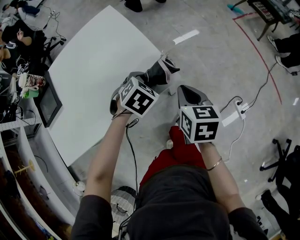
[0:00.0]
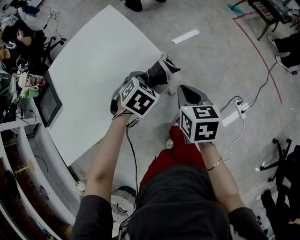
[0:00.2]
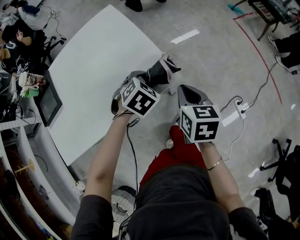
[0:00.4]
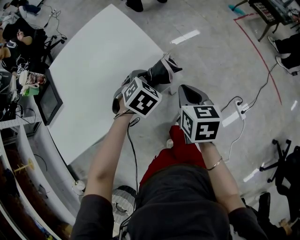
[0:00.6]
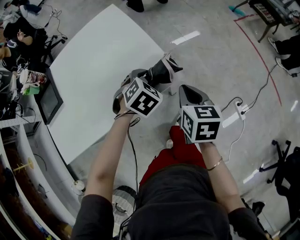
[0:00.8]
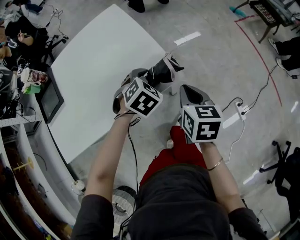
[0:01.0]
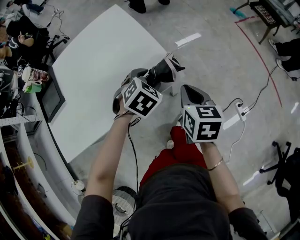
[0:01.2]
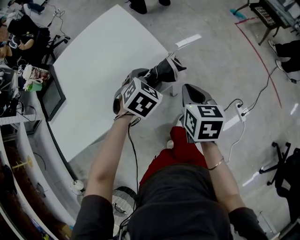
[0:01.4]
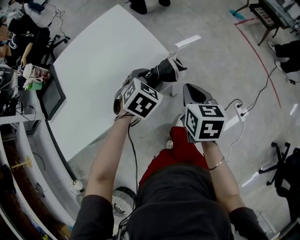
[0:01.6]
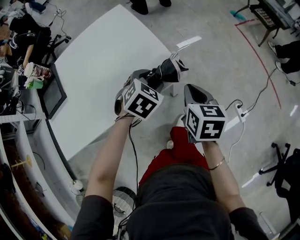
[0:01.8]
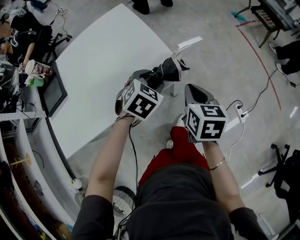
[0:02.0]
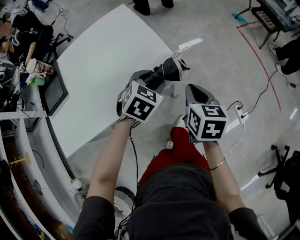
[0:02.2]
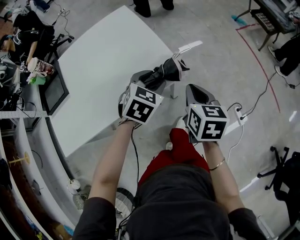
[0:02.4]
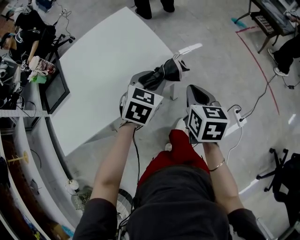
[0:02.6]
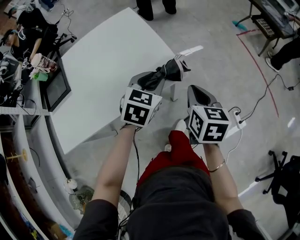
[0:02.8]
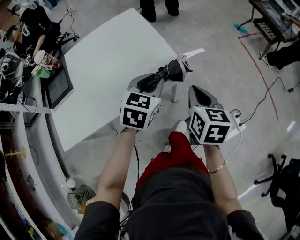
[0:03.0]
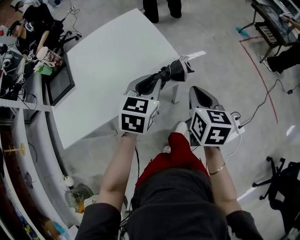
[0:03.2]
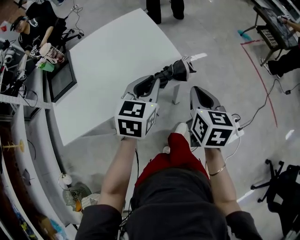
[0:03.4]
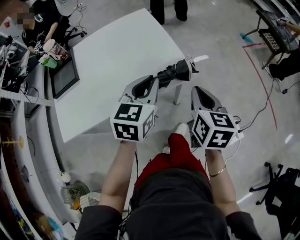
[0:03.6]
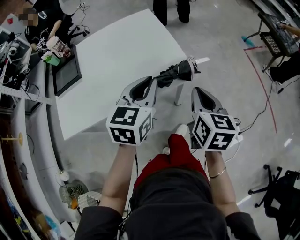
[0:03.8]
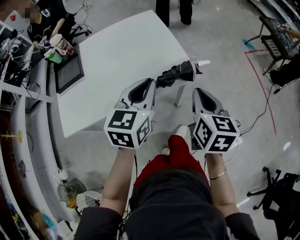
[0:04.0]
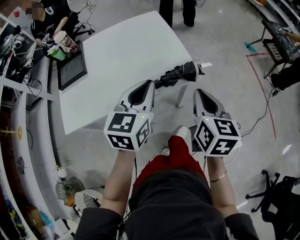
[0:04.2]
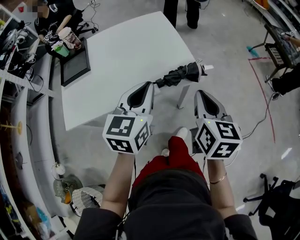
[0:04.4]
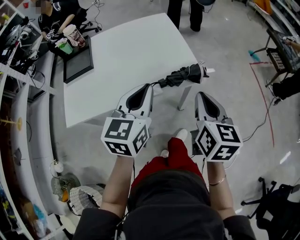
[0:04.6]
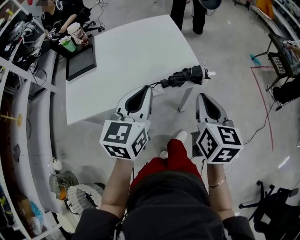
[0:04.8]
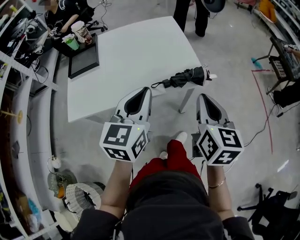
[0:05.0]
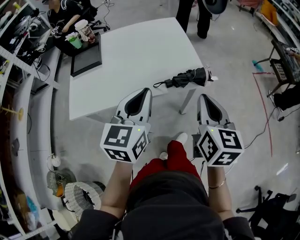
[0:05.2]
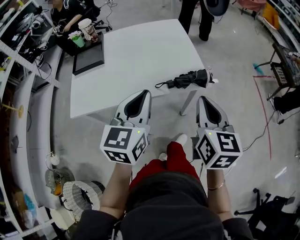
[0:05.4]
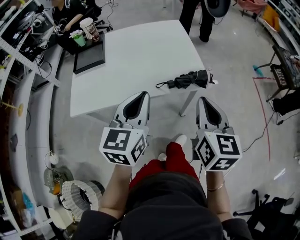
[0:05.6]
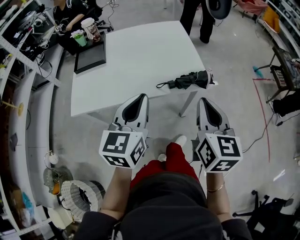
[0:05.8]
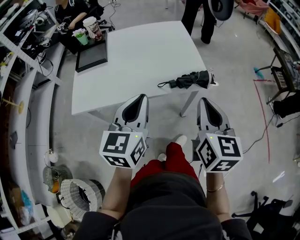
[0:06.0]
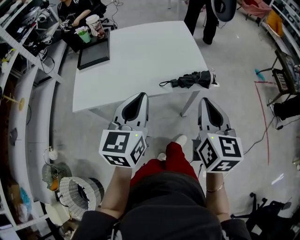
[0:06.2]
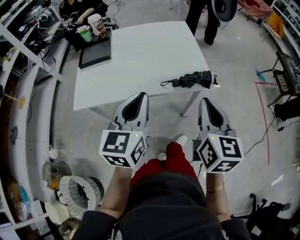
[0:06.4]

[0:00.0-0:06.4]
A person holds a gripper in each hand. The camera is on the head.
0:00.0 to 0:01.6: The grippers stay close to where they were, moving slightly.
0:01.6 to 0:03.2: The left gripper goes about 10 cm upward and backward, swivels some 40 degrees, and closes, while the right gripper goes roughly 5 cm upward.
0:03.2 to 0:04.8: The right gripper is displaced upward, backward and to the left by some 10 cm, while the left gripper is displaced backward, to the left and upward by approximately 20 cm, and turns by roughly 20 degrees.
0:04.8 to 0:06.4: The left gripper goes some 10 cm backward and to the left. The right gripper changes place by some 5 cm.

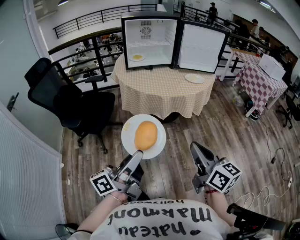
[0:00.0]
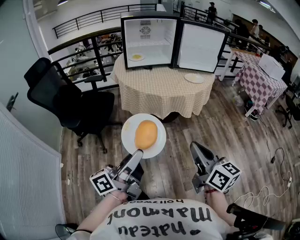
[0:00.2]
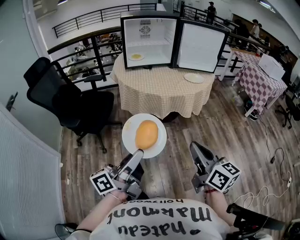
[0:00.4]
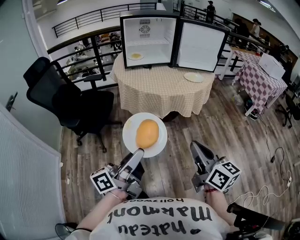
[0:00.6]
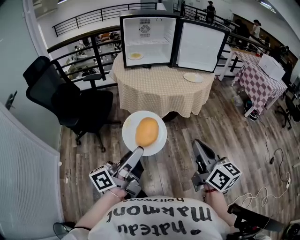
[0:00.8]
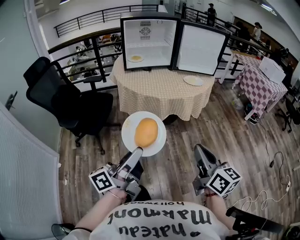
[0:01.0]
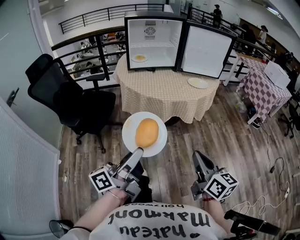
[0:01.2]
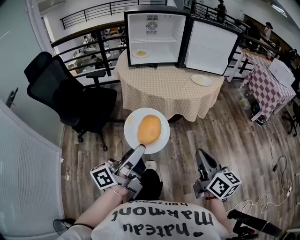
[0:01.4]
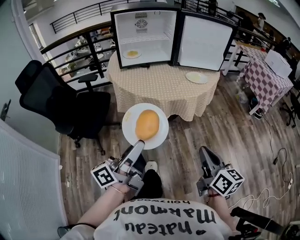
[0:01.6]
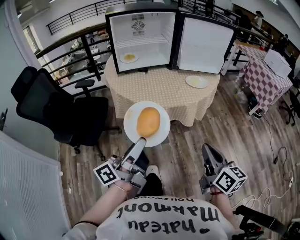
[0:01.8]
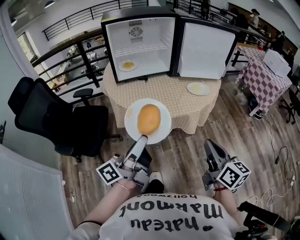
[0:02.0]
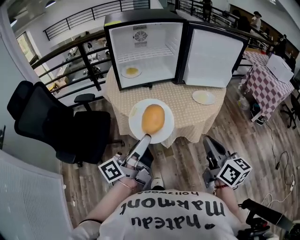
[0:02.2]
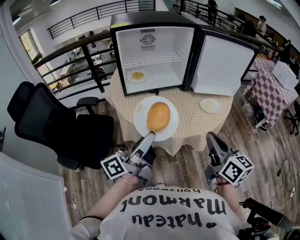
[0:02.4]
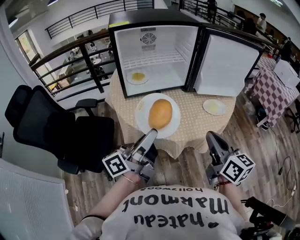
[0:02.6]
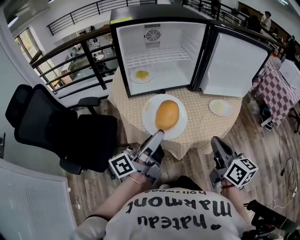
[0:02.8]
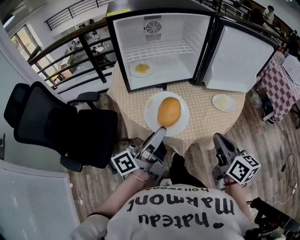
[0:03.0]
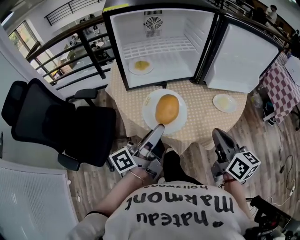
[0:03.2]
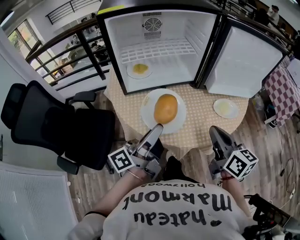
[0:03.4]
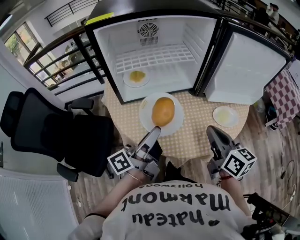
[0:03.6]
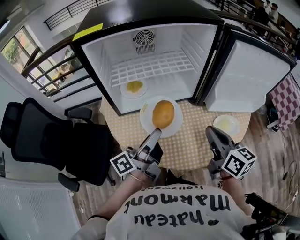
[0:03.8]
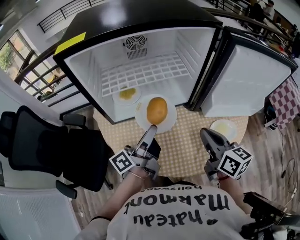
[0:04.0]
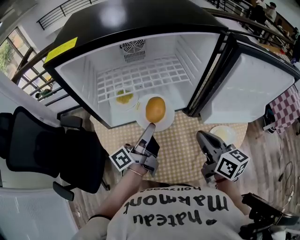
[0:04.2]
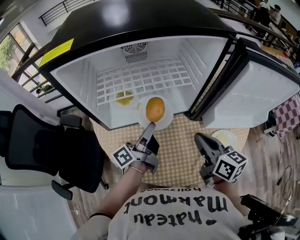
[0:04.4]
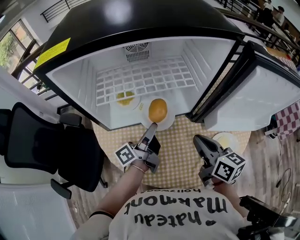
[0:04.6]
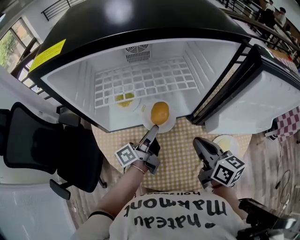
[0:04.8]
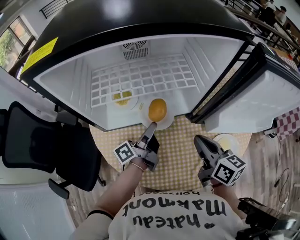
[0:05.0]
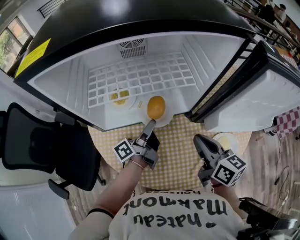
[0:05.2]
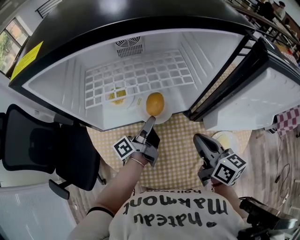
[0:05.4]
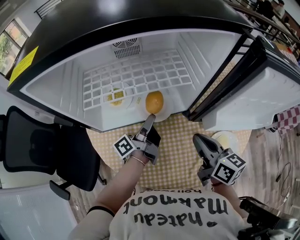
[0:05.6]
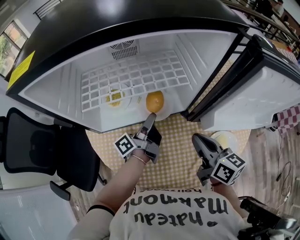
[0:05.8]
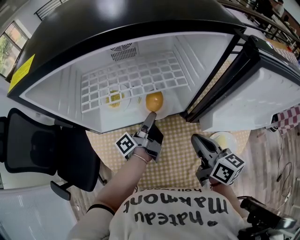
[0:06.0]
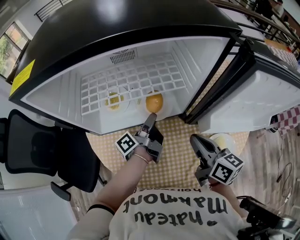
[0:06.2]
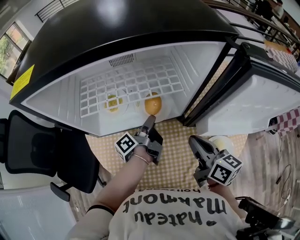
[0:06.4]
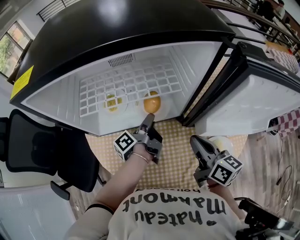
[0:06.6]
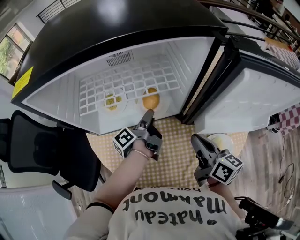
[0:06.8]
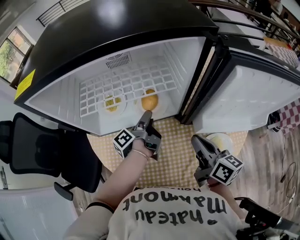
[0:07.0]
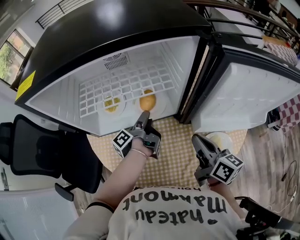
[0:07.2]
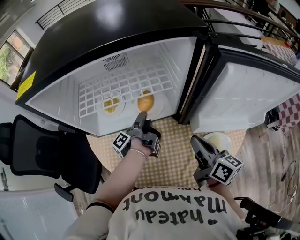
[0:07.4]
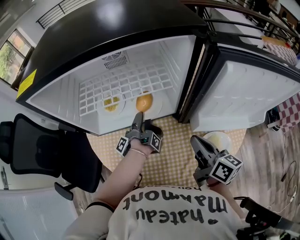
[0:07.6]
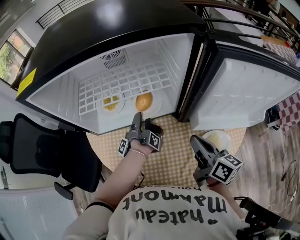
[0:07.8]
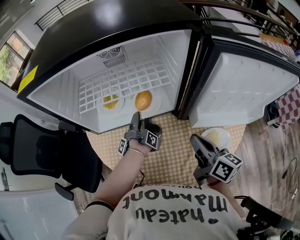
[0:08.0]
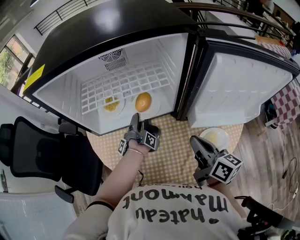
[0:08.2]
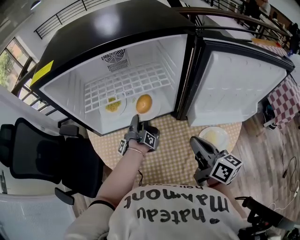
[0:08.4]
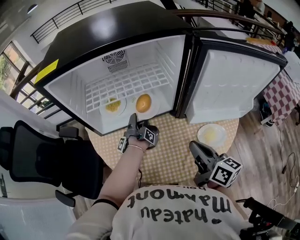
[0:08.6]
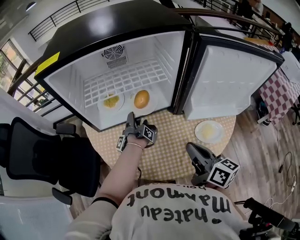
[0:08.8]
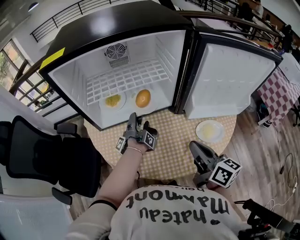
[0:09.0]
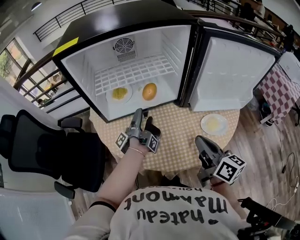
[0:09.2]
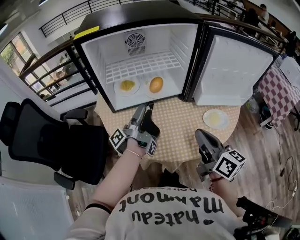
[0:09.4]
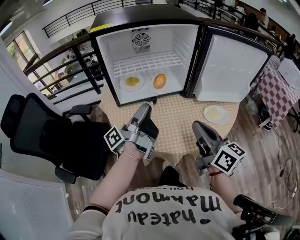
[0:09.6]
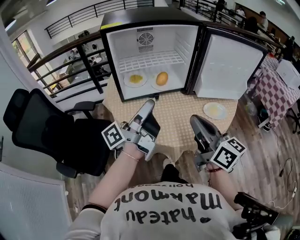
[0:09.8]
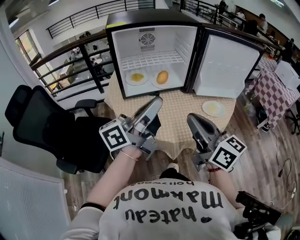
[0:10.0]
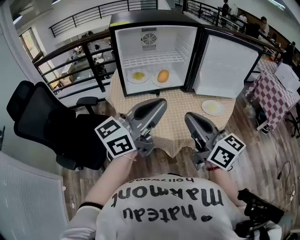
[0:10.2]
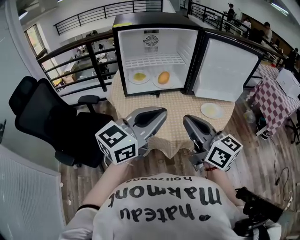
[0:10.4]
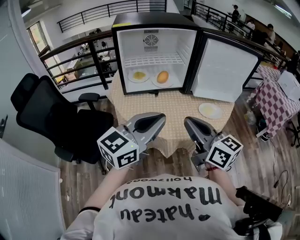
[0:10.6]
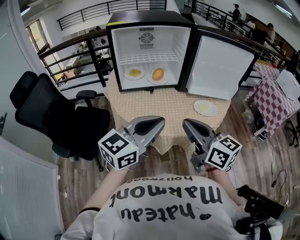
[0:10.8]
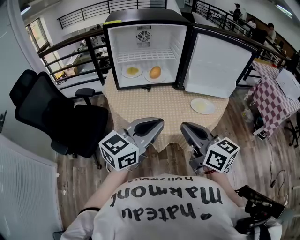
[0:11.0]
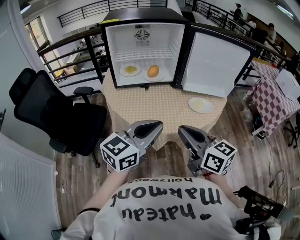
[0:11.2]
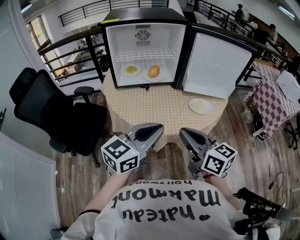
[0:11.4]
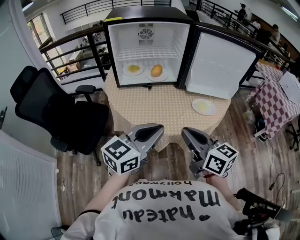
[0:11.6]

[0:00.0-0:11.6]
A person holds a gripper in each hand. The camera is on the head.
0:00.0 to 0:01.4: The right gripper changes place by some 10 cm.
0:01.4 to 0:02.8: The right gripper changes place by about 35 cm.
0:02.8 to 0:04.4: The right gripper changes place by approximately 30 cm.
0:07.2 to 0:08.8: The right gripper shifts by about 10 cm.
0:08.8 to 0:10.2: The right gripper changes place by approximately 25 cm, and turns by some 30 degrees.
0:10.2 to 0:11.6: The right gripper changes place by approximately 10 cm.

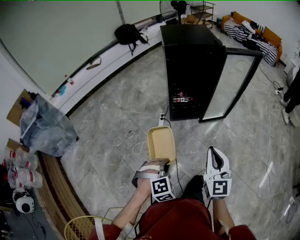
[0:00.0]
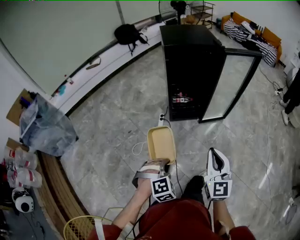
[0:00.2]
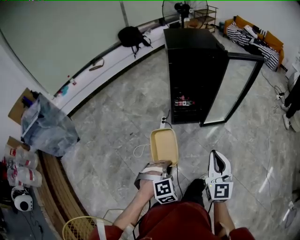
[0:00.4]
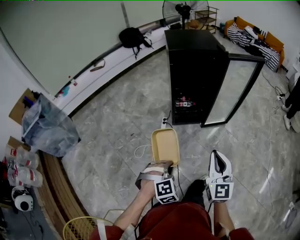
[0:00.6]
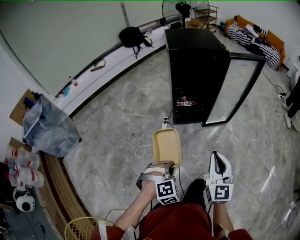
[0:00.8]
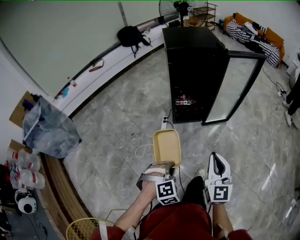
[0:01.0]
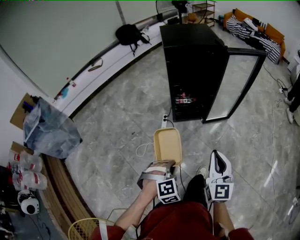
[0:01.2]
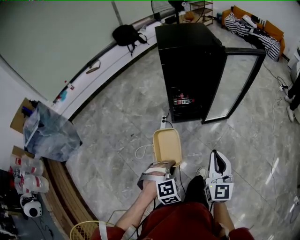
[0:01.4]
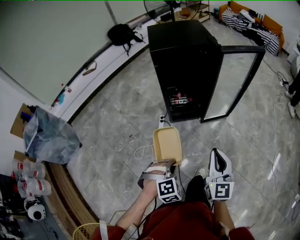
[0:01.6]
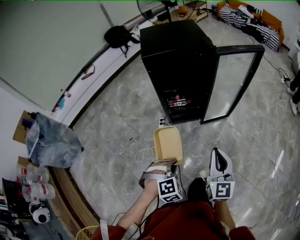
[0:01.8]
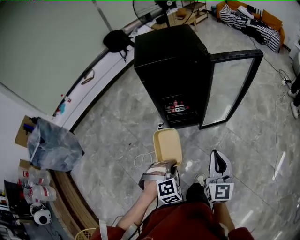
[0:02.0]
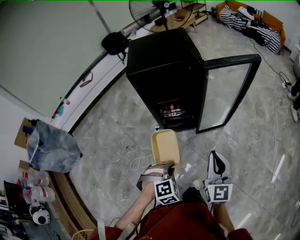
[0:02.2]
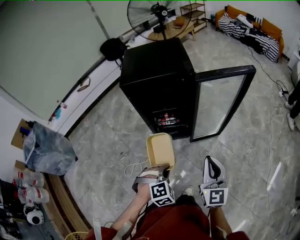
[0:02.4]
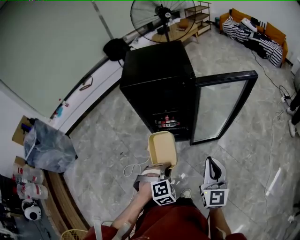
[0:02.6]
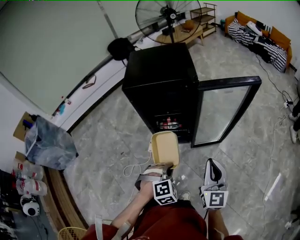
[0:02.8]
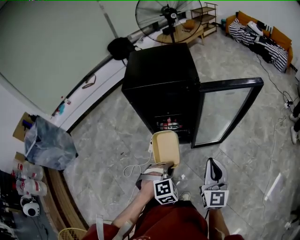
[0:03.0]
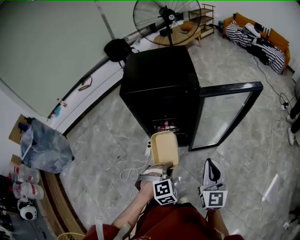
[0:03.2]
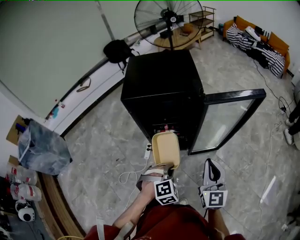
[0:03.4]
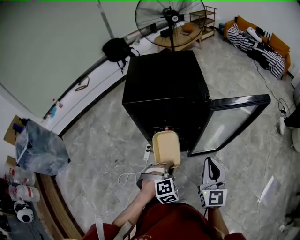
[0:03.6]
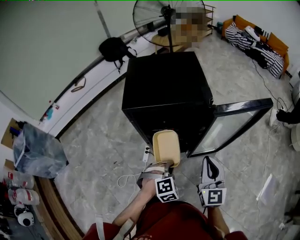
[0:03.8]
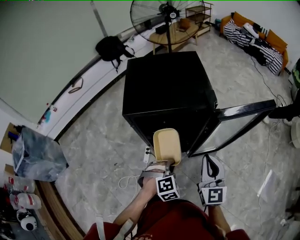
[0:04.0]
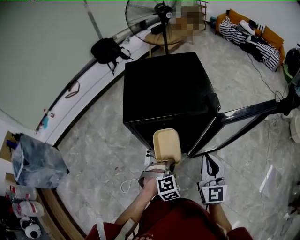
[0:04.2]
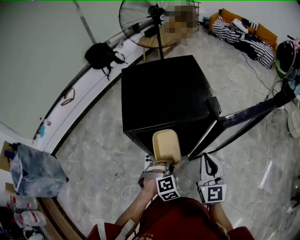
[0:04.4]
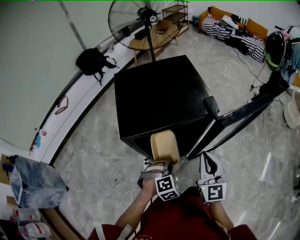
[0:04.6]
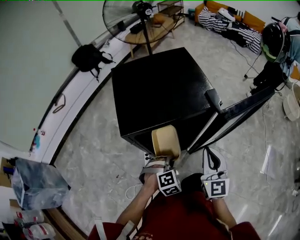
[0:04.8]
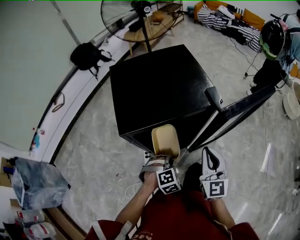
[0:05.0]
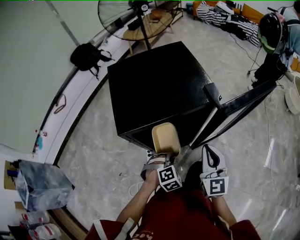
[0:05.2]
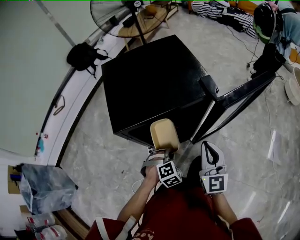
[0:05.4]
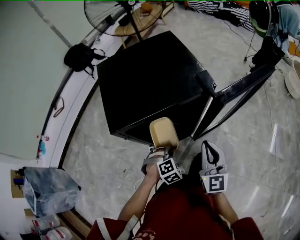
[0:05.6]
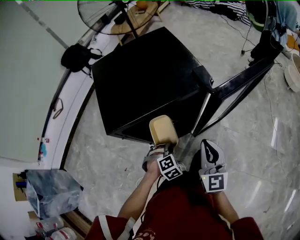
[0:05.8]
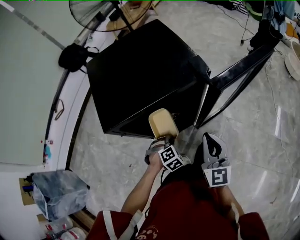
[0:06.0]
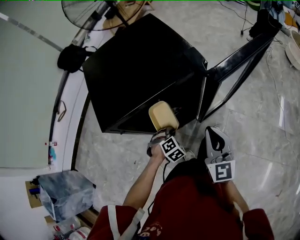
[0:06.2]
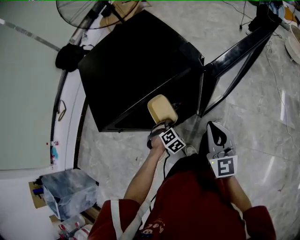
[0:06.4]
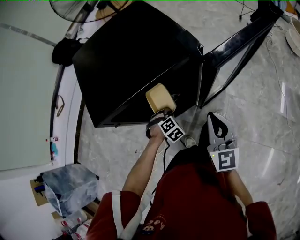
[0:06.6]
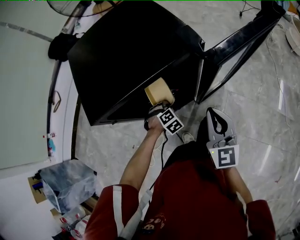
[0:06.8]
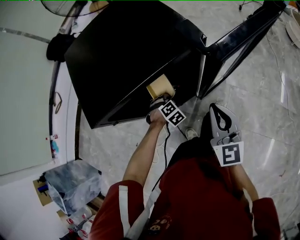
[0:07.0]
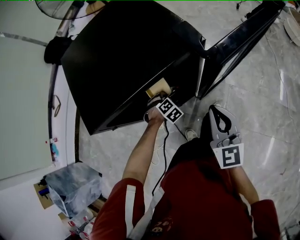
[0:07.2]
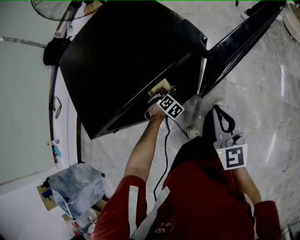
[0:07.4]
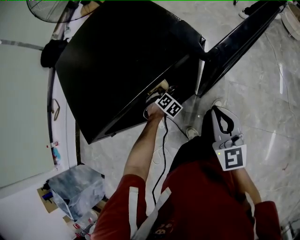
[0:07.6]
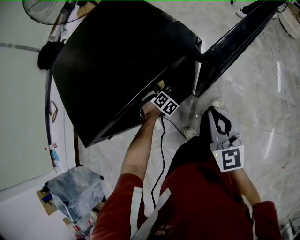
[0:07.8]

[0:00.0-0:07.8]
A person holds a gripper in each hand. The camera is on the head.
0:00.0 to 0:01.6: Both grippers travel together forward and to the right, some 10 cm.
0:01.6 to 0:03.2: The grippers both shift forward and to the right by about 25 cm.
0:03.2 to 0:04.6: The two grippers go approximately 20 cm forward and to the left.
0:04.6 to 0:06.2: The right gripper travels downward by some 5 cm, while the left gripper goes about 15 cm downward.
0:06.2 to 0:07.8: The left gripper goes roughly 20 cm forward and downward.
